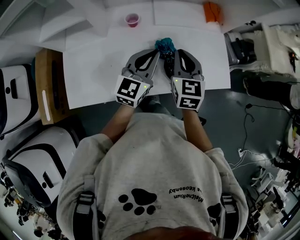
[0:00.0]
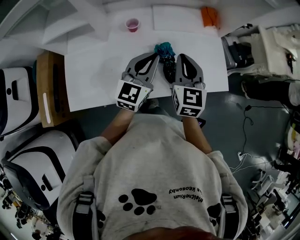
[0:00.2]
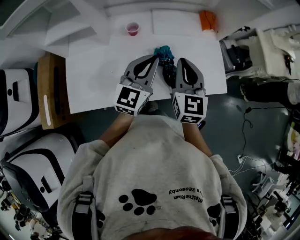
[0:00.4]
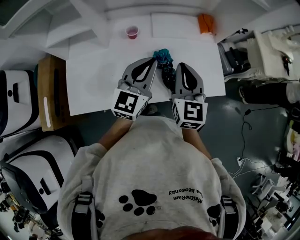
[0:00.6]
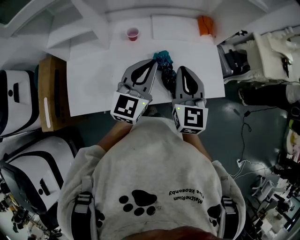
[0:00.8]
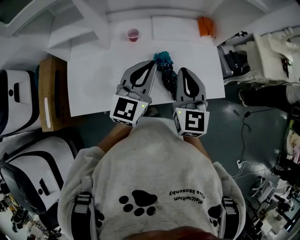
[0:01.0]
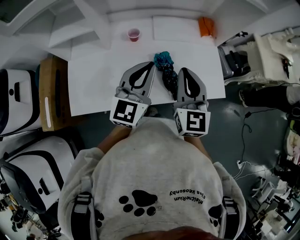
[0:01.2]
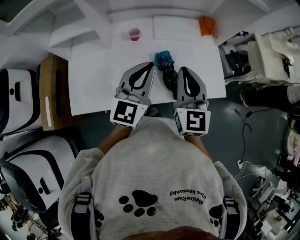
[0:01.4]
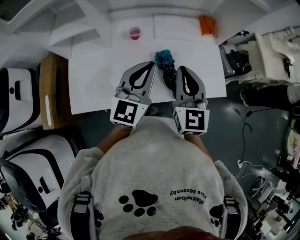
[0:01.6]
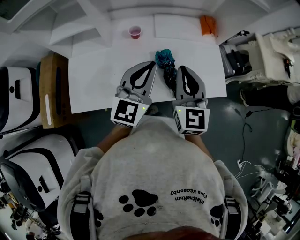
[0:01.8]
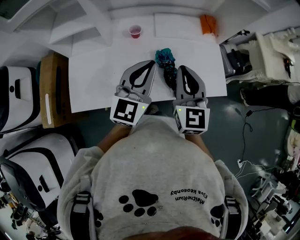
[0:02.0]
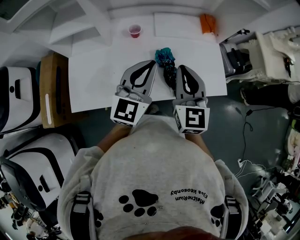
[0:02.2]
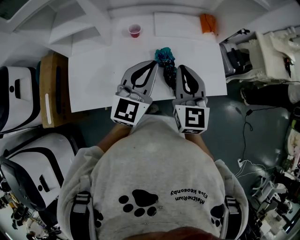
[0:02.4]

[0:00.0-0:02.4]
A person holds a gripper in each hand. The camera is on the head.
0:00.0 to 0:01.2: Both grippers move upward and backward, roughly 10 cm.
0:01.2 to 0:02.4: There are only small adjustments of the grippers.

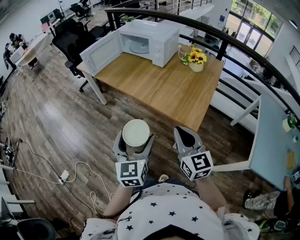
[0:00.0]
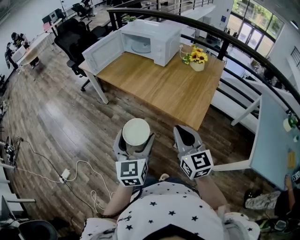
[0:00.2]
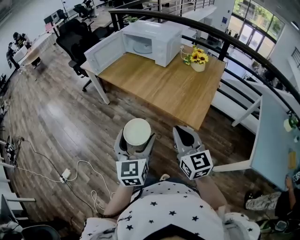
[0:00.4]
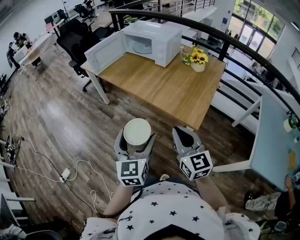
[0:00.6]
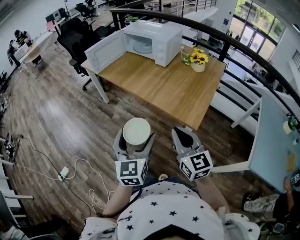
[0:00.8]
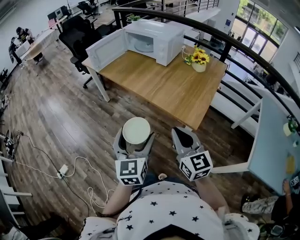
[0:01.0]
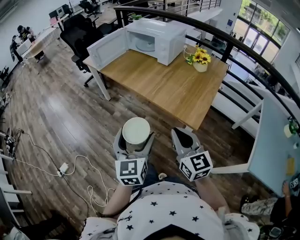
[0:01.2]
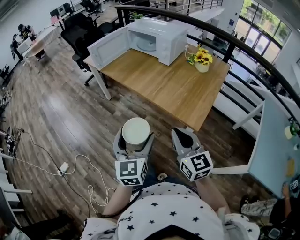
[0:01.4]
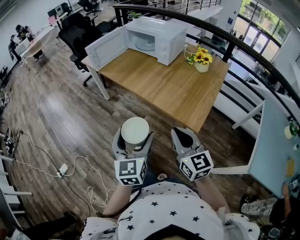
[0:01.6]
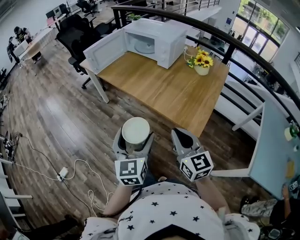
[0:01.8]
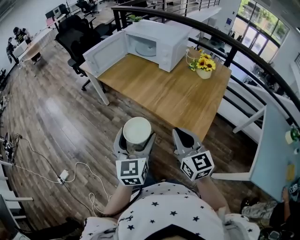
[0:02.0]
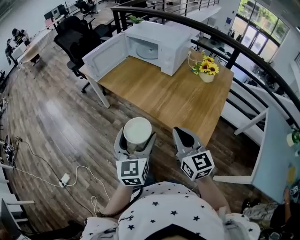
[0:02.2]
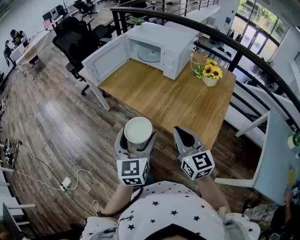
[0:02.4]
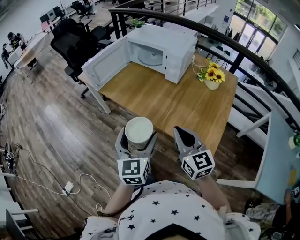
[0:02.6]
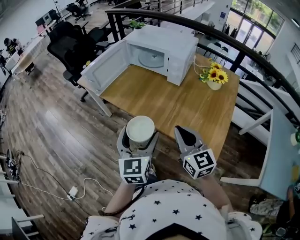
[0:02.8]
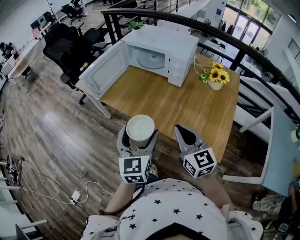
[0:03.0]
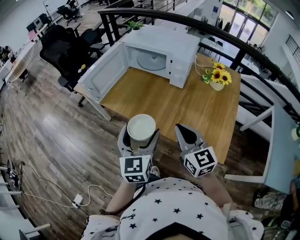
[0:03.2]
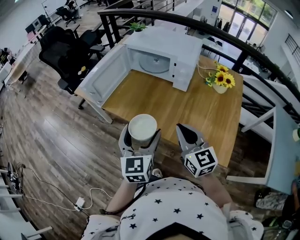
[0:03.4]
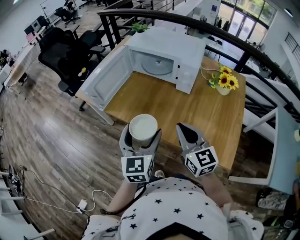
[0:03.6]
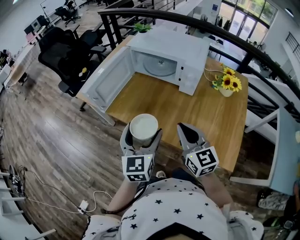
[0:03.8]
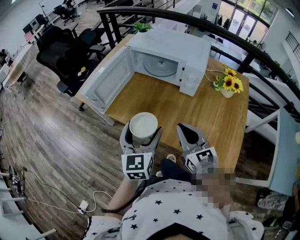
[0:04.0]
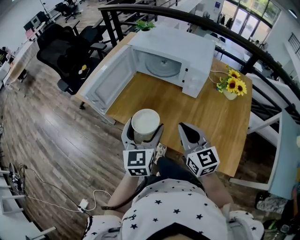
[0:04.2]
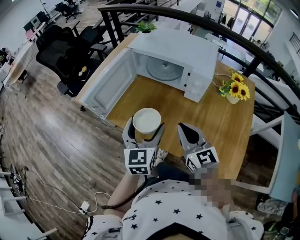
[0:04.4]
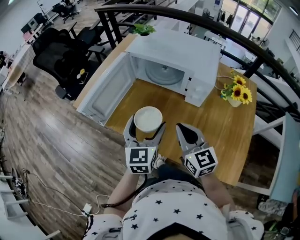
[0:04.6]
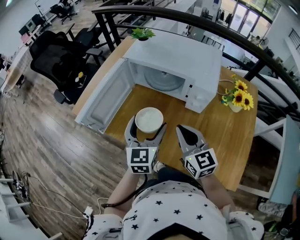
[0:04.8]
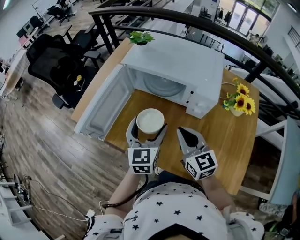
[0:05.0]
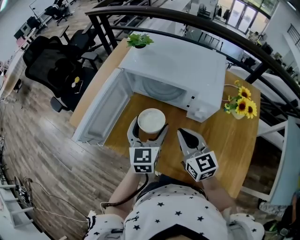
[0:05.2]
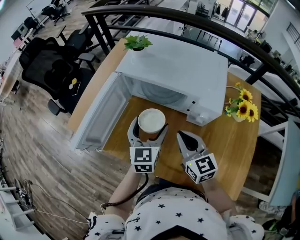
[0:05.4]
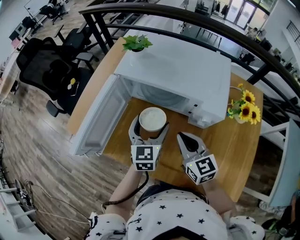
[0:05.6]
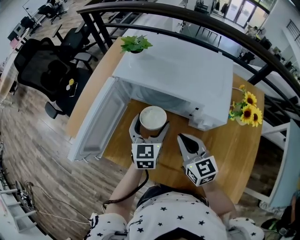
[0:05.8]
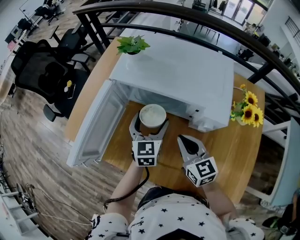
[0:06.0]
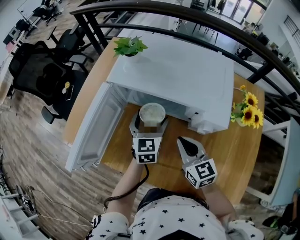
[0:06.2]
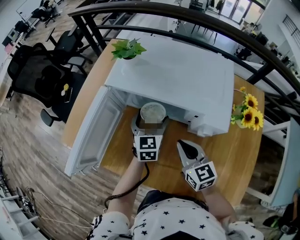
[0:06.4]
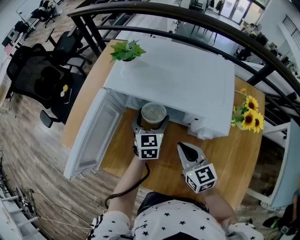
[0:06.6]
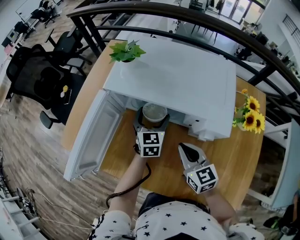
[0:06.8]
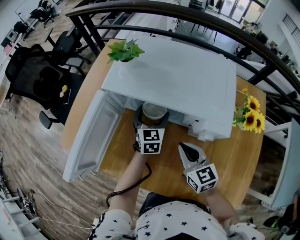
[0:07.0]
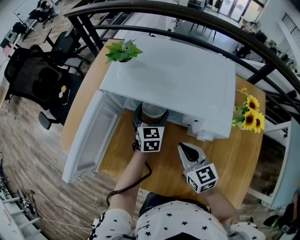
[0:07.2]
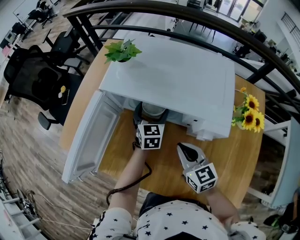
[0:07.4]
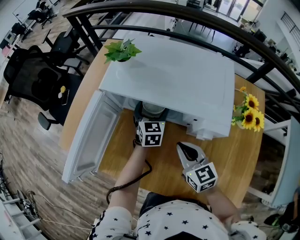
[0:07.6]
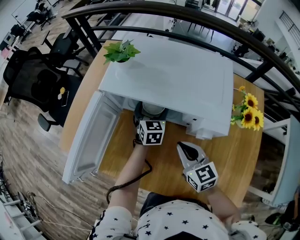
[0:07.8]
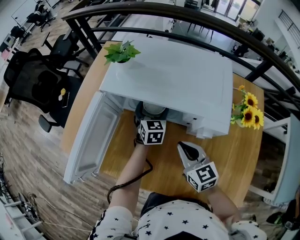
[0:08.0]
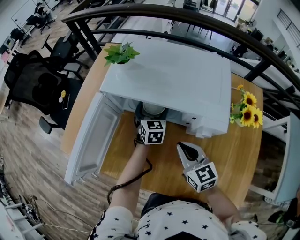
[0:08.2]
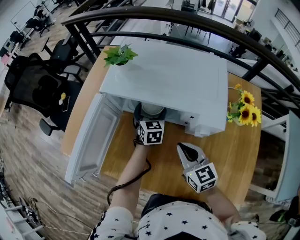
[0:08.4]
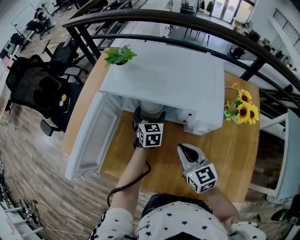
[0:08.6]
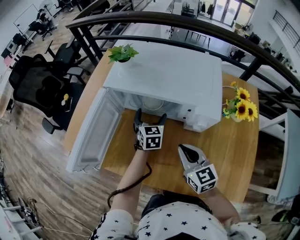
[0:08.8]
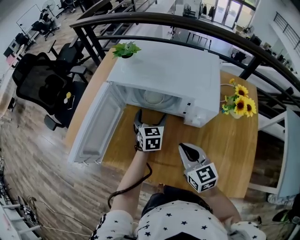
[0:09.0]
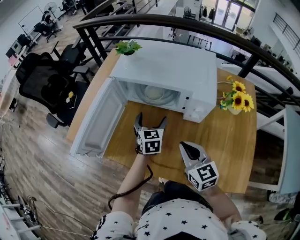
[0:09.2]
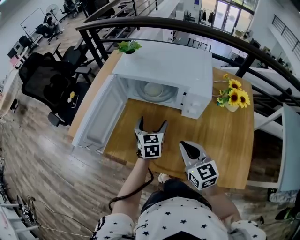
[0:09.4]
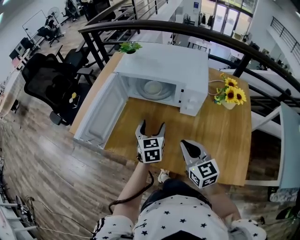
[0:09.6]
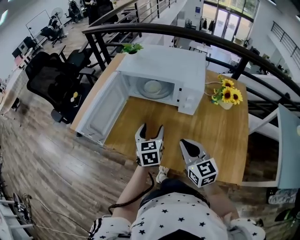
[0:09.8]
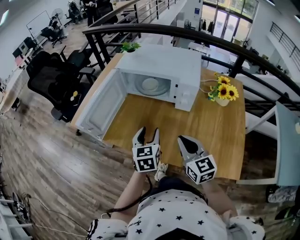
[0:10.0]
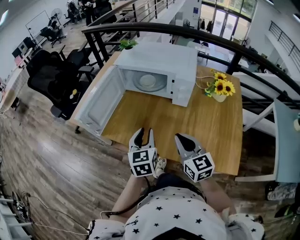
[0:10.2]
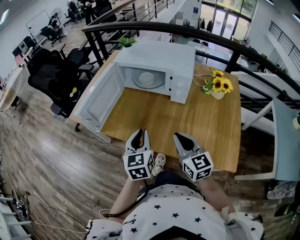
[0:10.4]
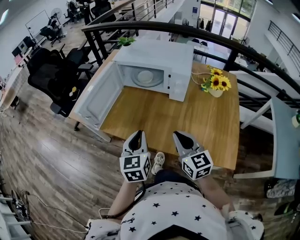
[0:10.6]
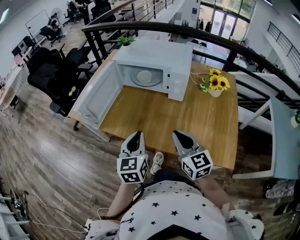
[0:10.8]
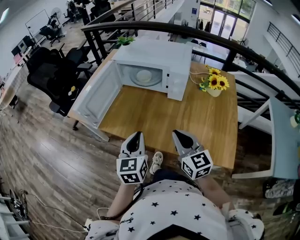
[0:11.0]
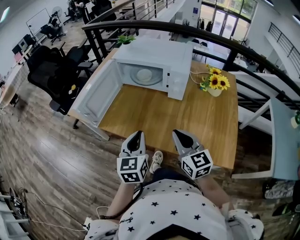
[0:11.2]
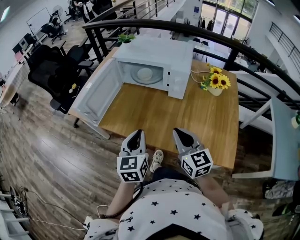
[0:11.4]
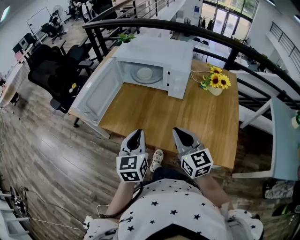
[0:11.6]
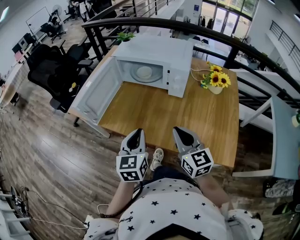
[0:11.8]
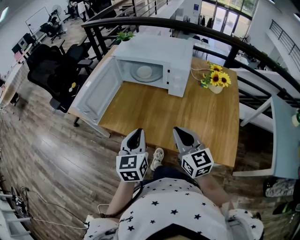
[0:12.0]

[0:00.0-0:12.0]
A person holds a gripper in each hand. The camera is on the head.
0:00.0 to 0:01.6: The grippers move only a little.
0:01.6 to 0:03.0: The two grippers go approximately 25 cm forward.
0:03.0 to 0:04.4: Both grippers move forward, roughly 20 cm.
0:04.4 to 0:06.0: The right gripper is displaced forward and downward by roughly 20 cm. The left gripper heads forward, covering roughly 25 cm.
0:06.0 to 0:07.6: The left gripper travels forward and downward by approximately 10 cm.
0:07.6 to 0:09.0: The grippers both shift backward by some 10 cm.
0:09.0 to 0:10.4: The left gripper is displaced backward by some 30 cm, and closes its fingers; the right gripper goes approximately 20 cm backward.
0:10.4 to 0:12.0: The grippers stay close to where they were, moving slightly.

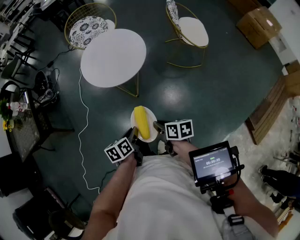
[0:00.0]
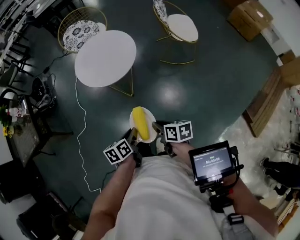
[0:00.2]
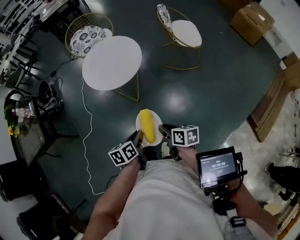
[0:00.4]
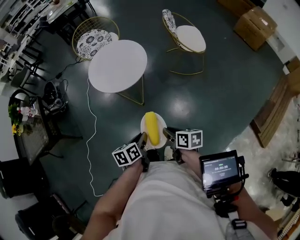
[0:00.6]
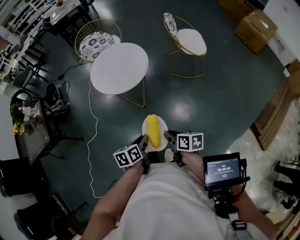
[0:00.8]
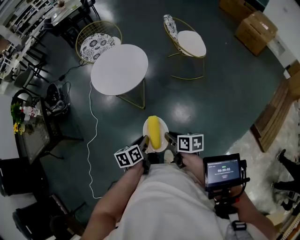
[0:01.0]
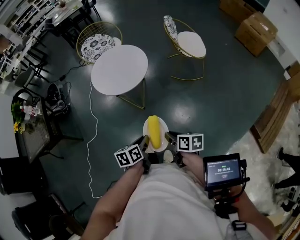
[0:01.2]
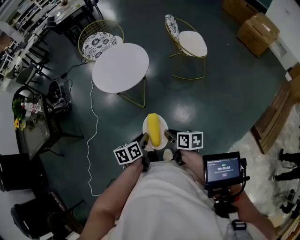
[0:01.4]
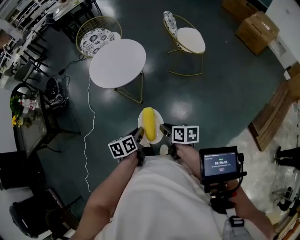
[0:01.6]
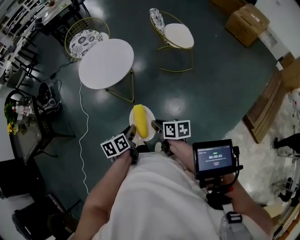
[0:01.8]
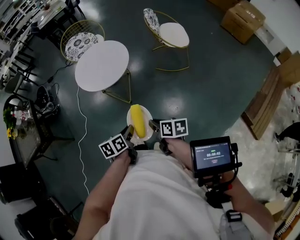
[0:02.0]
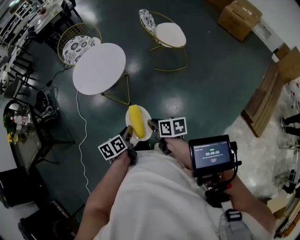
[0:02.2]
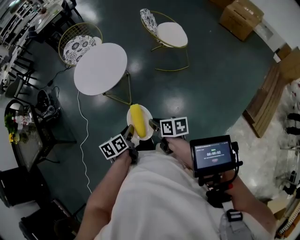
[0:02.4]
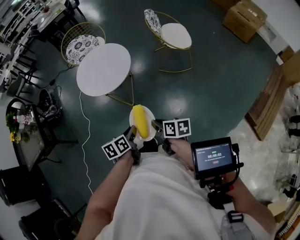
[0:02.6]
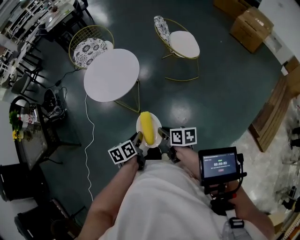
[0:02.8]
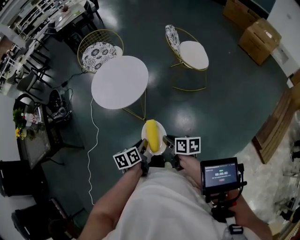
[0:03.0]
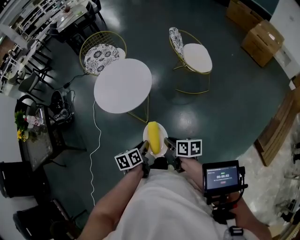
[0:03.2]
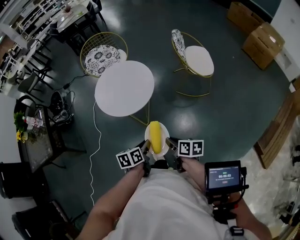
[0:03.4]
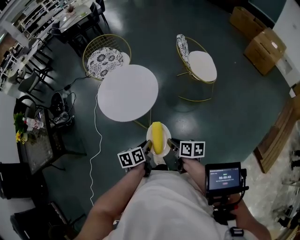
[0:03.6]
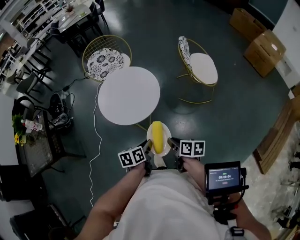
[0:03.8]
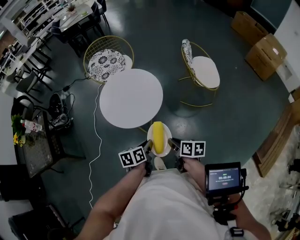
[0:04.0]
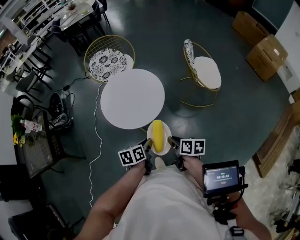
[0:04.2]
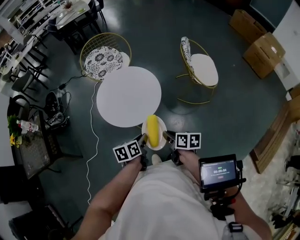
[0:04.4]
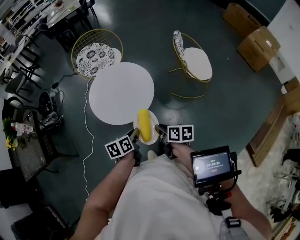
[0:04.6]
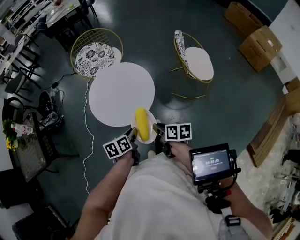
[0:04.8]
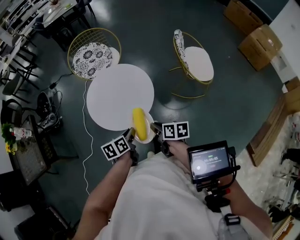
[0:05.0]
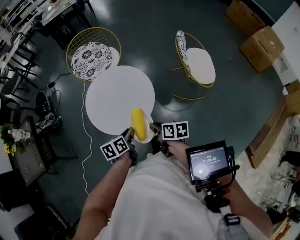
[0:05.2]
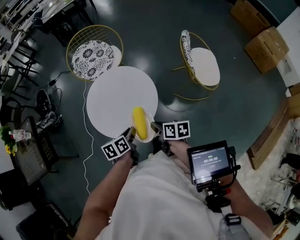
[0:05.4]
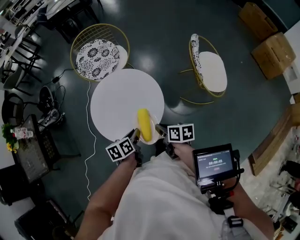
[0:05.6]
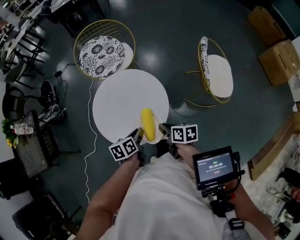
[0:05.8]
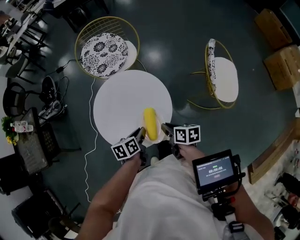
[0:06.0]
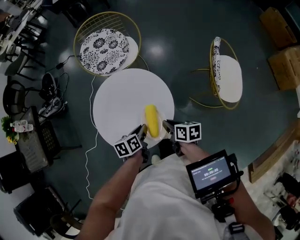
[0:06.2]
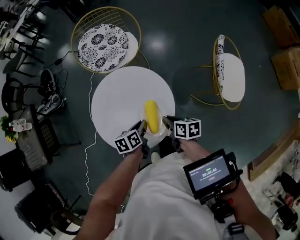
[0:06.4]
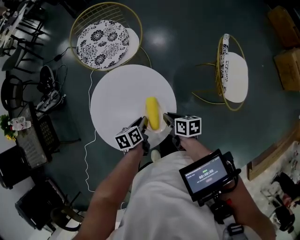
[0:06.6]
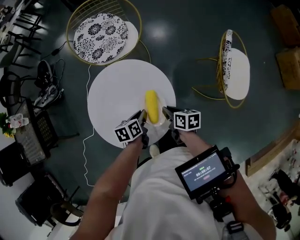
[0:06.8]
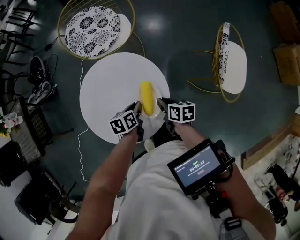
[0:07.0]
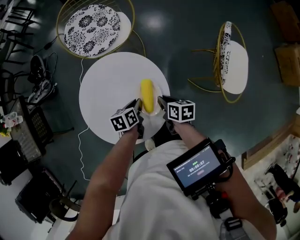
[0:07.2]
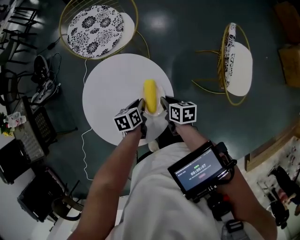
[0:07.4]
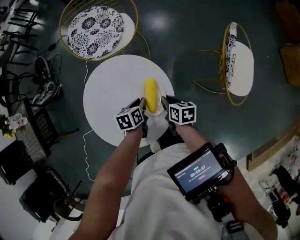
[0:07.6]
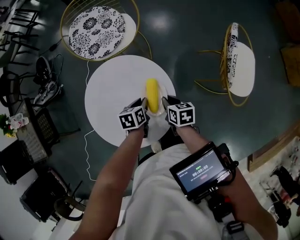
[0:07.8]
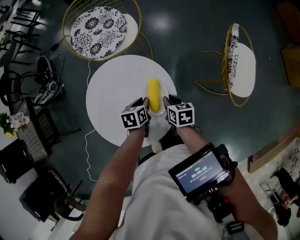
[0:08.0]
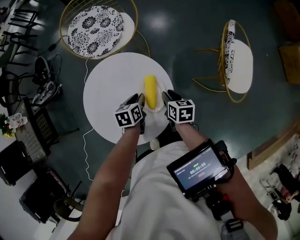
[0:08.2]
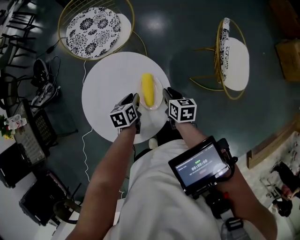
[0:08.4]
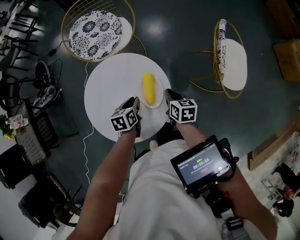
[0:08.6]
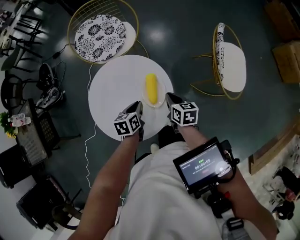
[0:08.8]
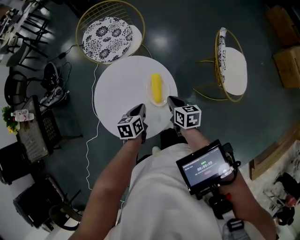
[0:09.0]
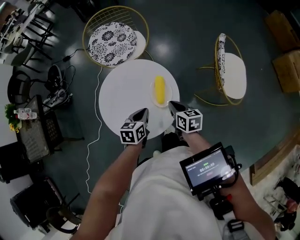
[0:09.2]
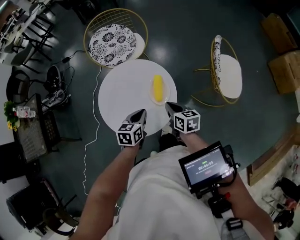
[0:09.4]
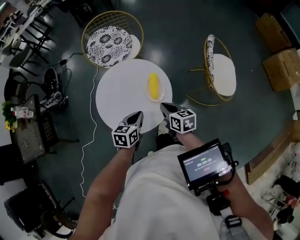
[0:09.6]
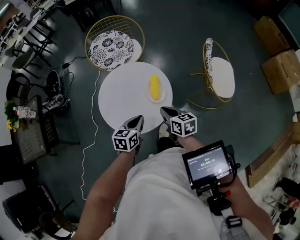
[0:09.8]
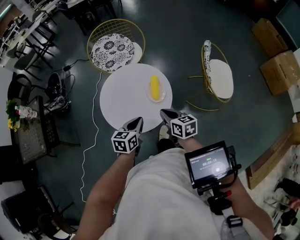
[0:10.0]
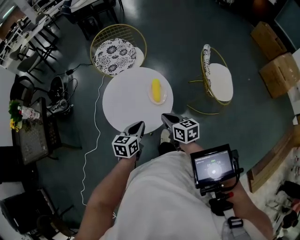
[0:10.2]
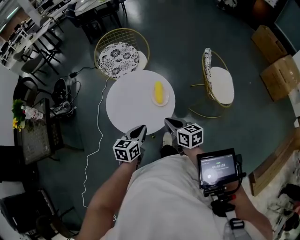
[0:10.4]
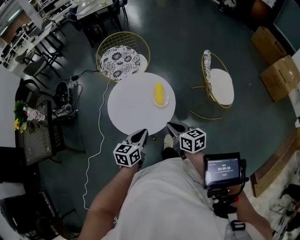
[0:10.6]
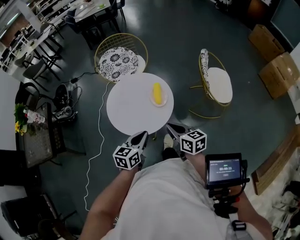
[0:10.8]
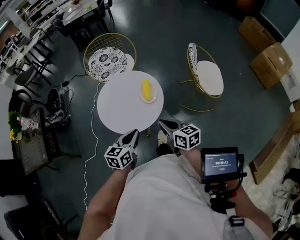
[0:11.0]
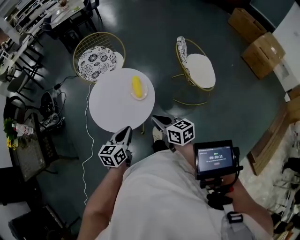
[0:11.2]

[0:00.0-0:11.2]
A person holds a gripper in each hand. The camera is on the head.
0:00.0 to 0:01.6: The left gripper goes some 10 cm backward, to the right and upward; the right gripper goes about 10 cm backward and to the right.
0:01.6 to 0:03.2: Both grippers travel together forward, roughly 10 cm.
0:03.2 to 0:04.8: The grippers both shift forward by some 20 cm.
0:04.8 to 0:06.4: The two grippers go some 30 cm forward and downward.
0:06.4 to 0:08.0: The left gripper heads forward and downward, covering about 10 cm. Meanwhile the right gripper is displaced downward and forward by approximately 10 cm.
0:08.0 to 0:09.6: Both grippers travel together upward and backward, roughly 20 cm. The left gripper swivels about 30 degrees.
0:09.6 to 0:11.2: Both grippers travel together backward and upward, approximately 15 cm.
